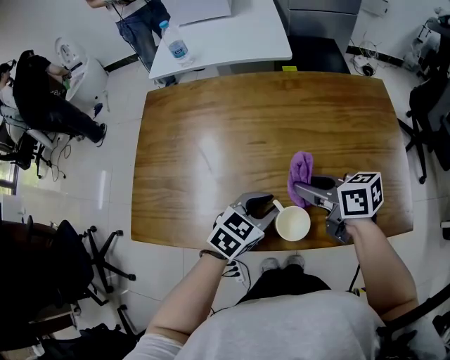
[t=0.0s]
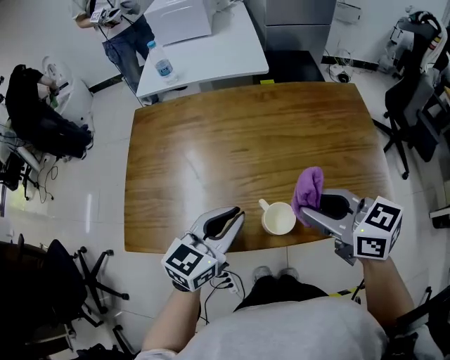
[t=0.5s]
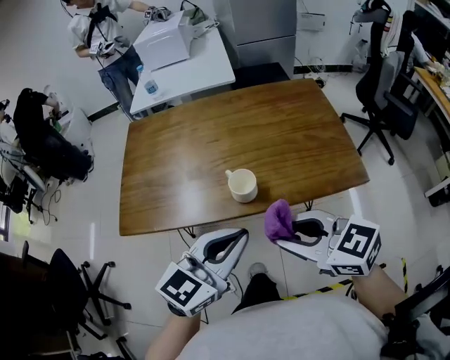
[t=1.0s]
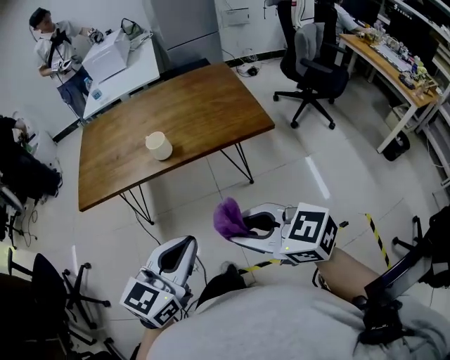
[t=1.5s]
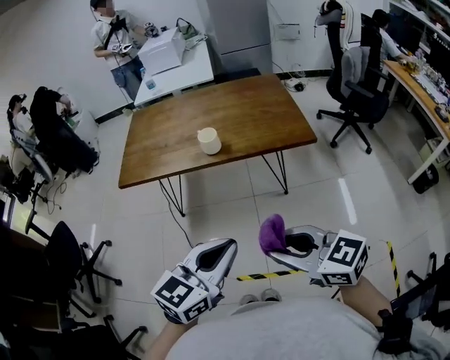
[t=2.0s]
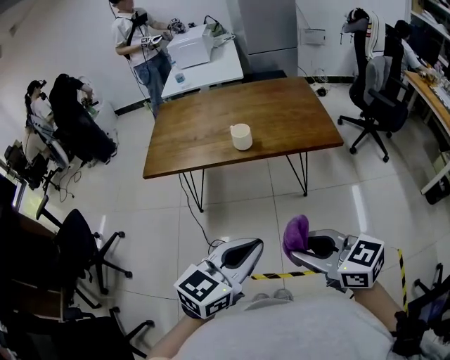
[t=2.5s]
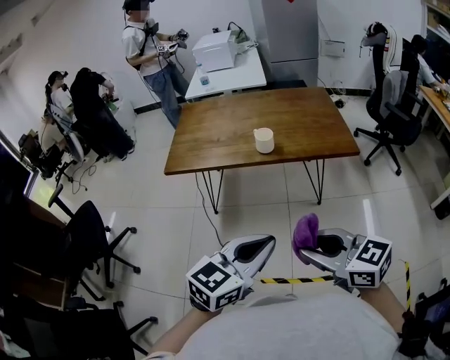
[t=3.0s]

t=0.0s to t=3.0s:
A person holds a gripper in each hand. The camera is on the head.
t=0.0s to t=1.5s: Both grippers are carried backward, approximately 50 cm. The left gripper heads upward, covering roughly 25 cm, and rotates roughly 30 degrees, while the right gripper changes its angle by approximately 30 degrees.
t=1.5s to t=3.0s: The left gripper goes about 5 cm backward. The right gripper moves backward and to the left, approximately 10 cm.

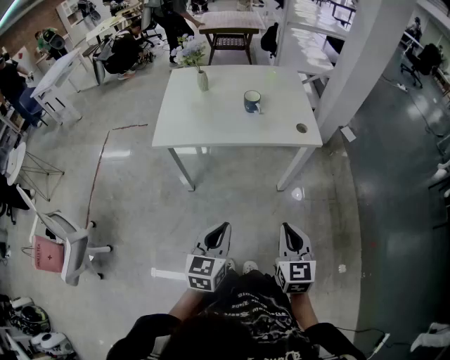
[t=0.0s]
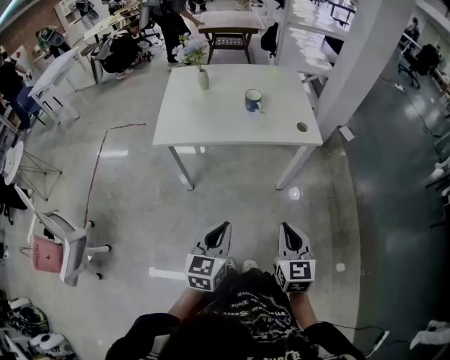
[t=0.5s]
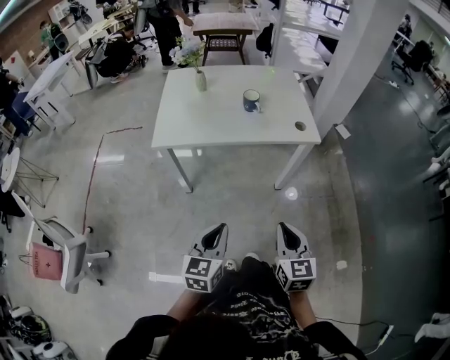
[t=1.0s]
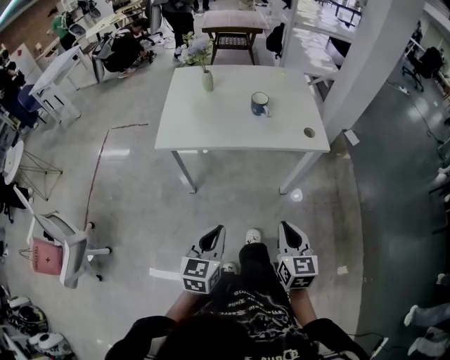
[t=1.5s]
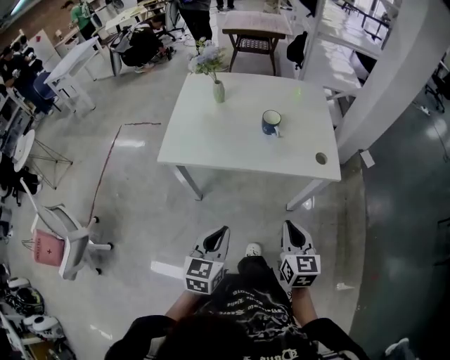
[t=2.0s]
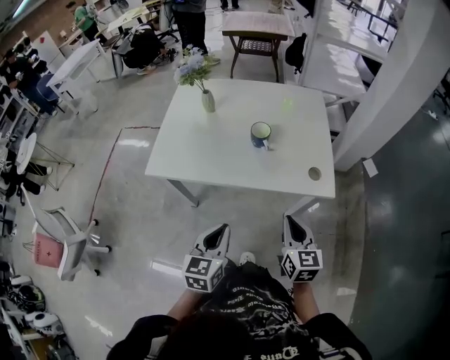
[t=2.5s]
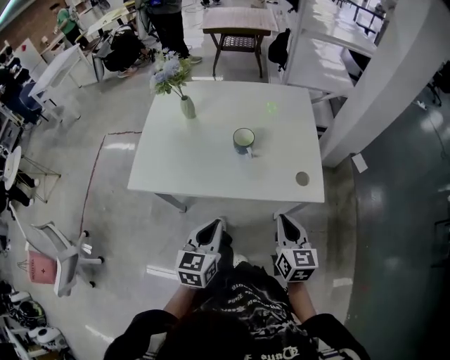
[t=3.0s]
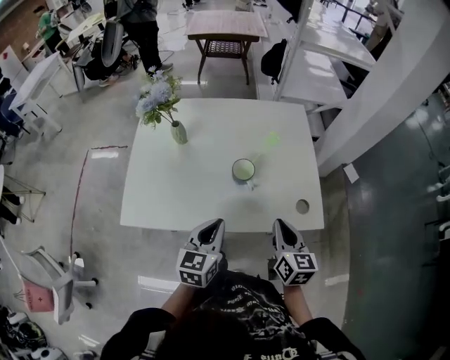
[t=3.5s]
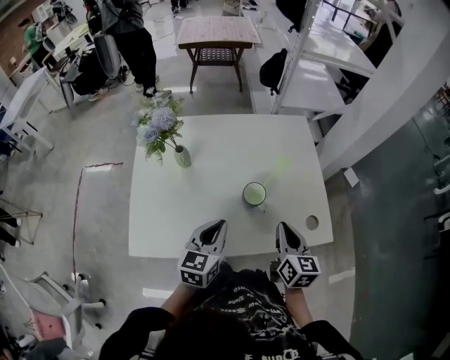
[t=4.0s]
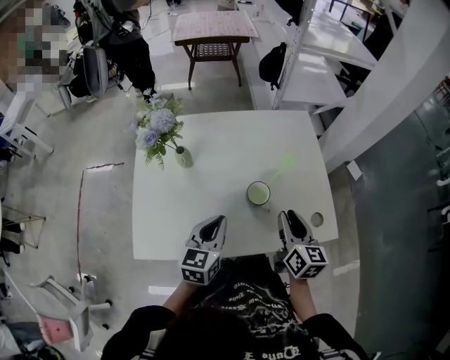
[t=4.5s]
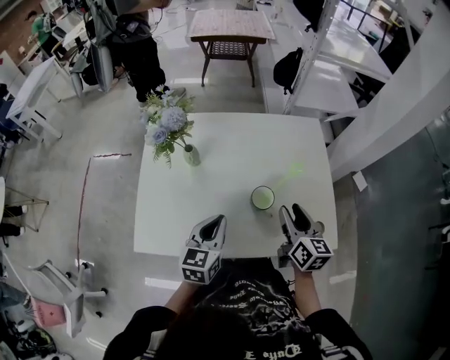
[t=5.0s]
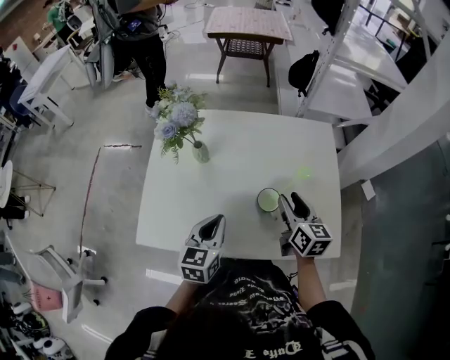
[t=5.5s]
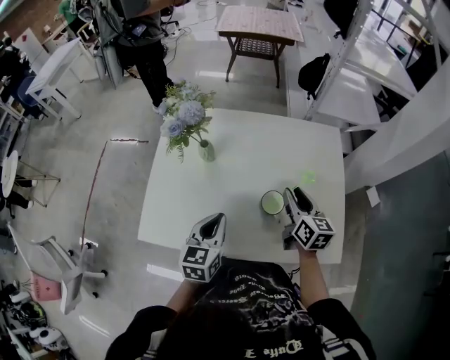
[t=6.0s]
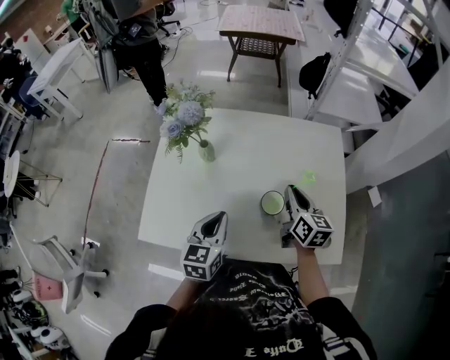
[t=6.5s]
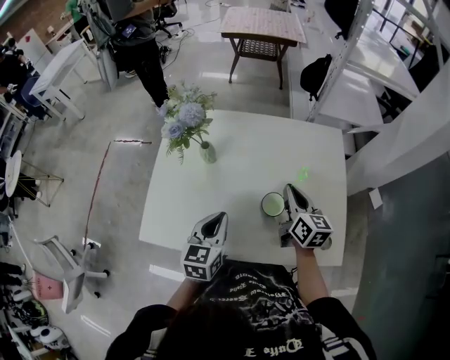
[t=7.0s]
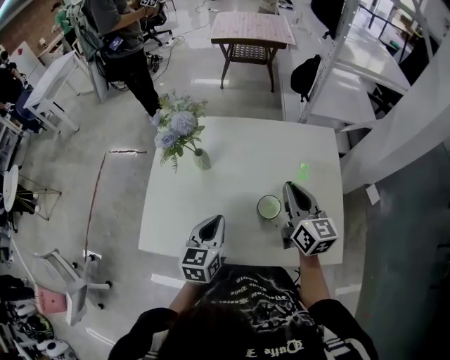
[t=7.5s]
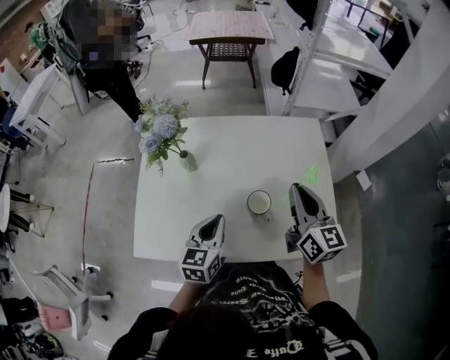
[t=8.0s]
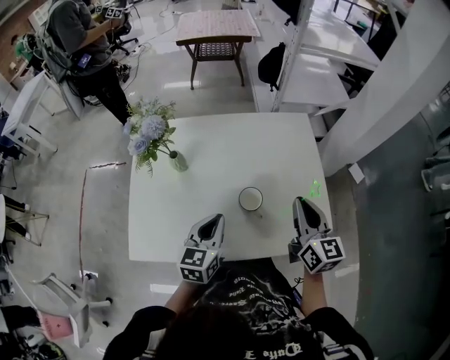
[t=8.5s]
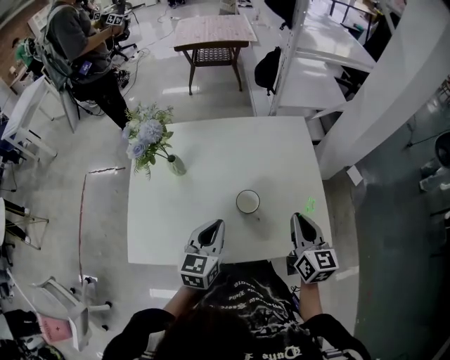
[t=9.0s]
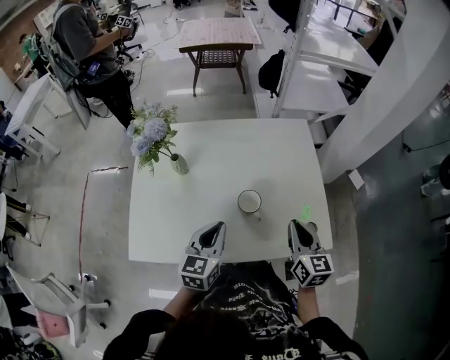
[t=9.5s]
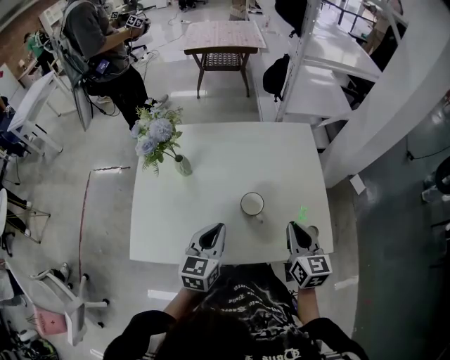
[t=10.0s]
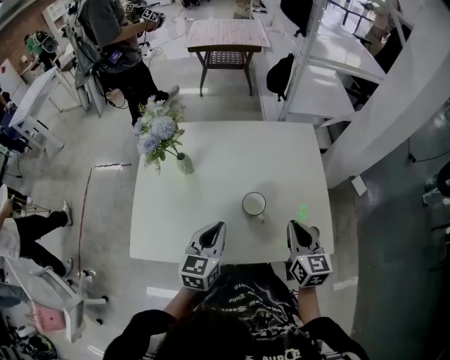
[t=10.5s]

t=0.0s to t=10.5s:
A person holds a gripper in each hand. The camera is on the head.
t=0.0s to t=2.0s: The grippers both shift forward by approximately 20 cm.
t=2.0s to t=4.0s: The two grippers travel together, forward, roughly 50 cm.
t=4.0s to t=6.5s: The left gripper shifts by some 5 cm, while the right gripper moves forward, approximately 15 cm, and opens and closes again.
t=6.5s to t=8.5s: The right gripper shifts some 15 cm upward, backward and to the right. Meanwhile the left gripper heads to the right, covering roughly 5 cm.
t=8.5s to t=10.5s: The right gripper goes about 5 cm downward.

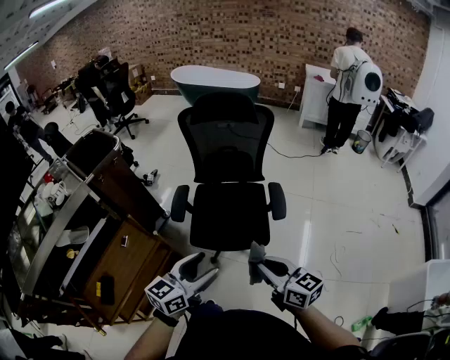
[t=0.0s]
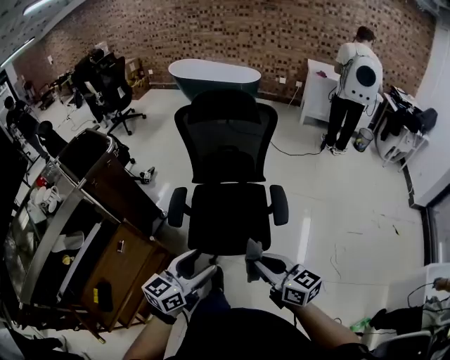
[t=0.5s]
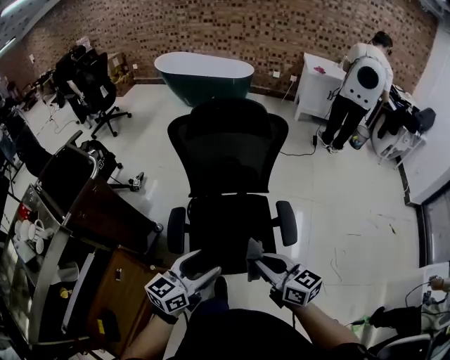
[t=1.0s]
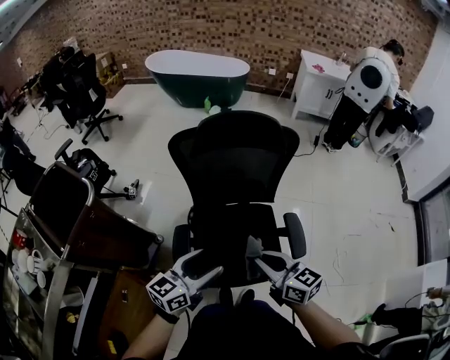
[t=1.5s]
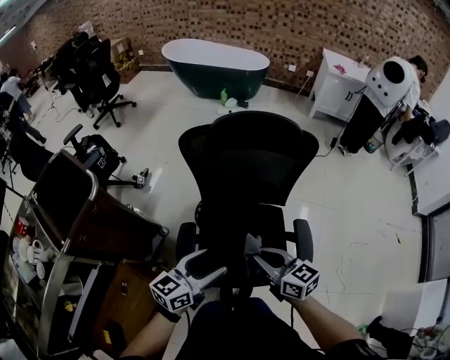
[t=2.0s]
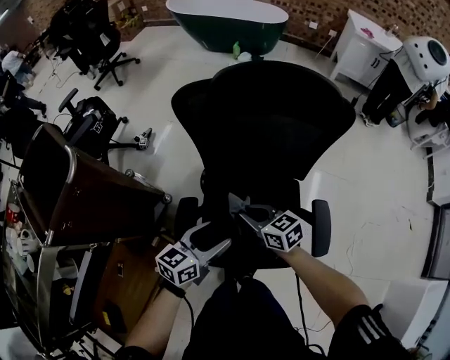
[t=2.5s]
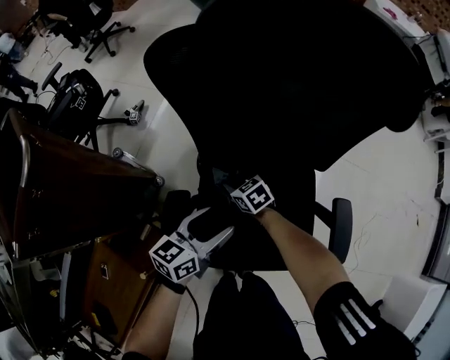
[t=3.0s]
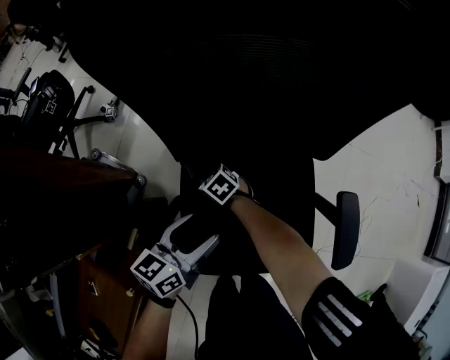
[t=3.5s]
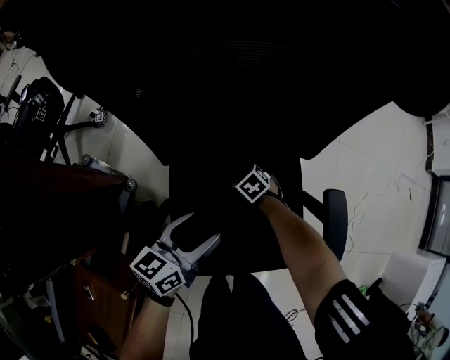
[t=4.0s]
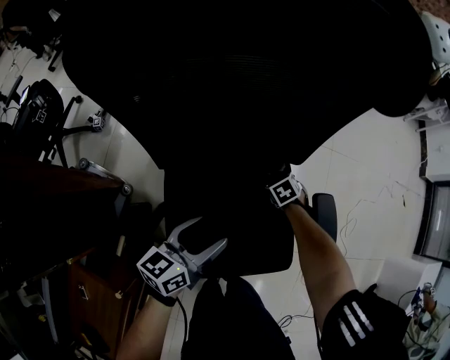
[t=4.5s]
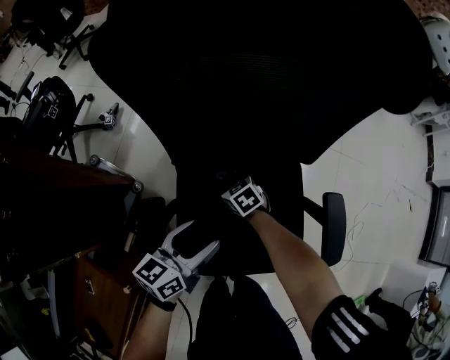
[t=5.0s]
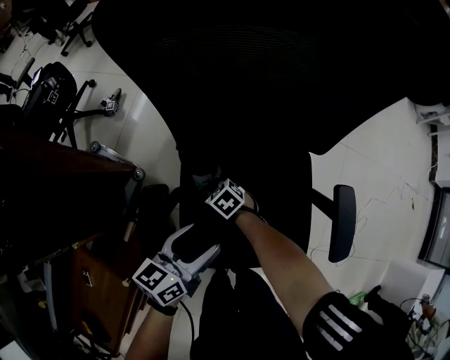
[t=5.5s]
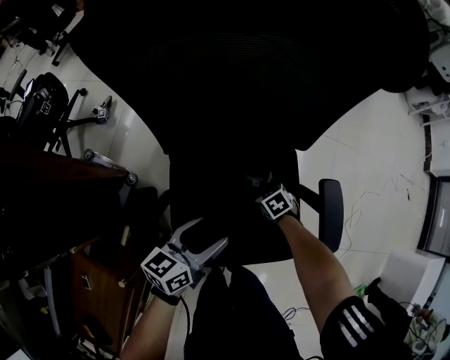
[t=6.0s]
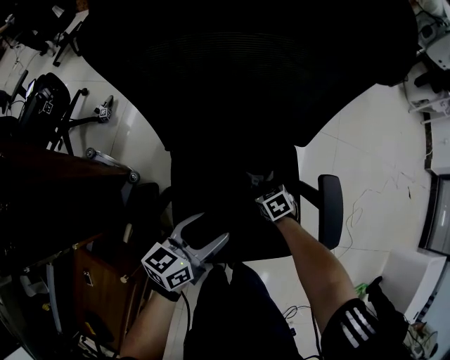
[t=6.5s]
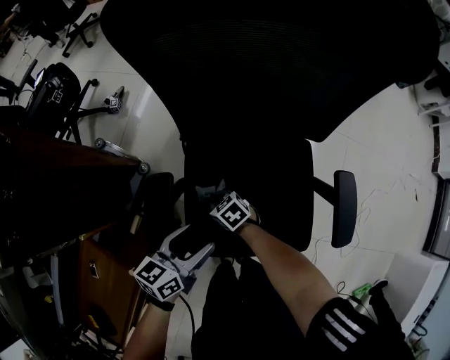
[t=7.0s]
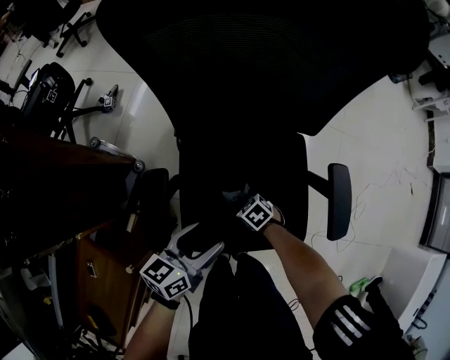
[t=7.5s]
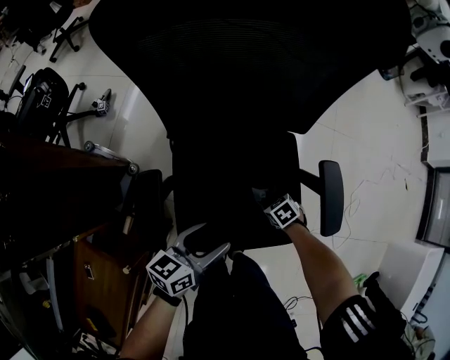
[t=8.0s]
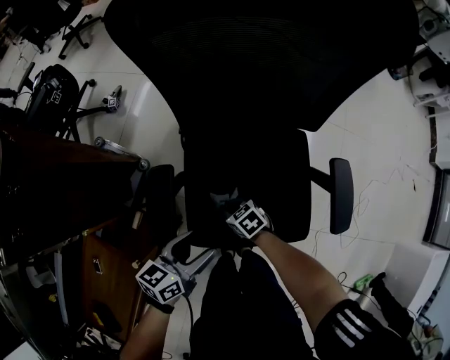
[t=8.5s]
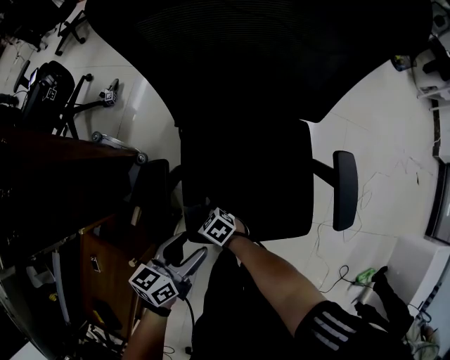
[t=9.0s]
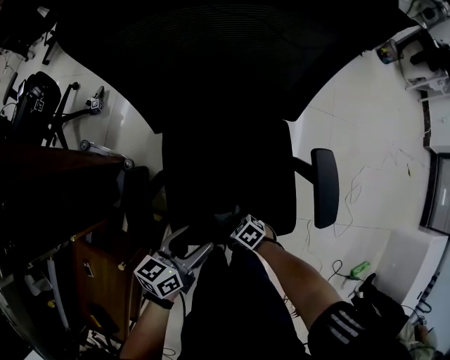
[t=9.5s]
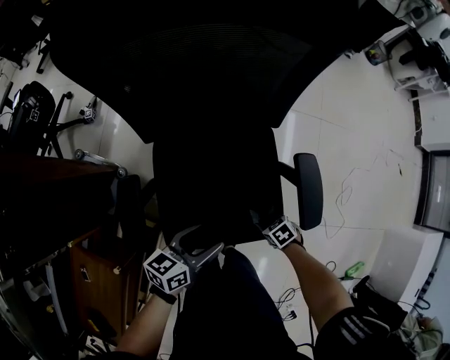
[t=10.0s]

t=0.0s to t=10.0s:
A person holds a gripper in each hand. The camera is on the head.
t=0.0s to t=2.0s: Both grippers travel together forward, about 40 cm.
t=2.0s to t=4.0s: The left gripper heads downward and forward, covering roughly 35 cm. Meanwhile the right gripper is displaced downward and forward by approximately 60 cm, and tilts its fingers about 50 degrees downward.
t=4.0s to t=6.0s: The right gripper changes place by some 15 cm. Meanwhile the left gripper changes place by some 5 cm.
t=6.0s to t=8.0s: The left gripper shifts by roughly 5 cm.

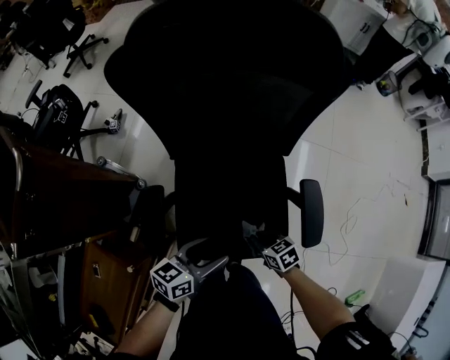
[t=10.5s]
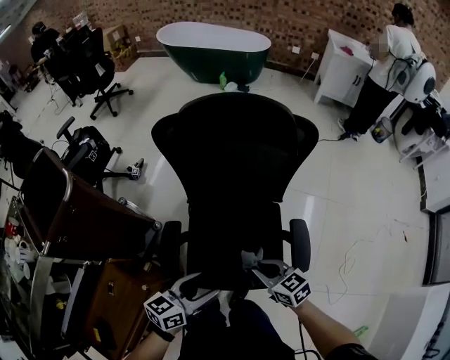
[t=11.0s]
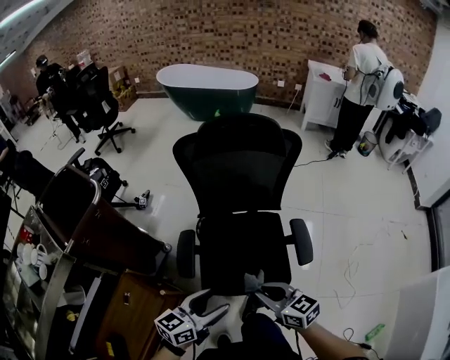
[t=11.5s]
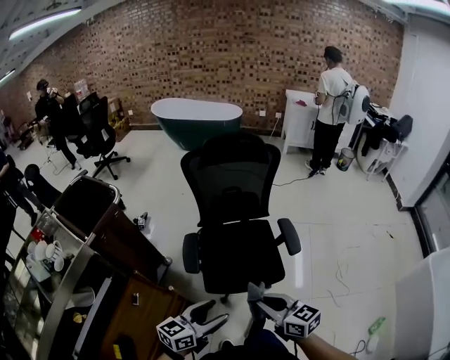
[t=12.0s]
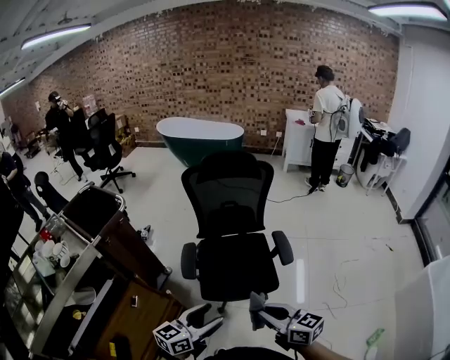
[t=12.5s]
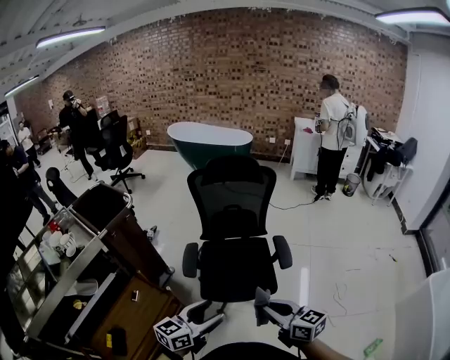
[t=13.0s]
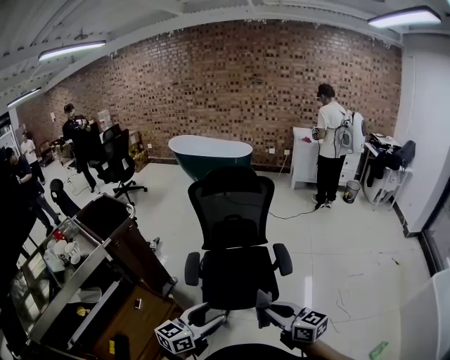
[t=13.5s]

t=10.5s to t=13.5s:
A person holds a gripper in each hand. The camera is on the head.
t=10.5s to t=12.0s: The left gripper shifts roughly 40 cm backward and upward, and turns by about 20 degrees. The right gripper moves upward and backward, about 50 cm, and angles its fingers upward, by about 40 degrees.
t=12.0s to t=13.5s: The right gripper heads to the right, backward and upward, covering about 15 cm. Meanwhile the left gripper travels upward, backward and to the right by about 10 cm.
